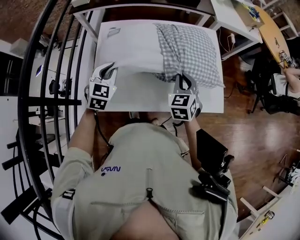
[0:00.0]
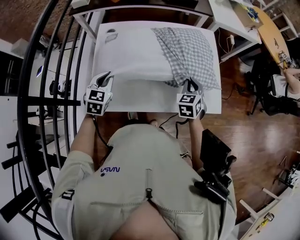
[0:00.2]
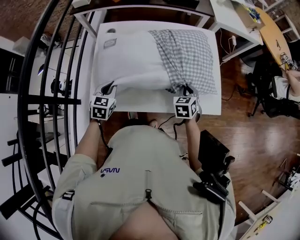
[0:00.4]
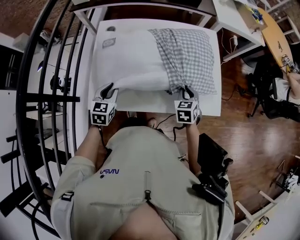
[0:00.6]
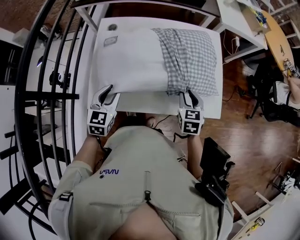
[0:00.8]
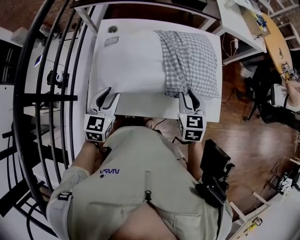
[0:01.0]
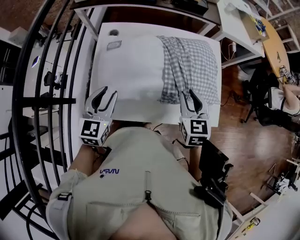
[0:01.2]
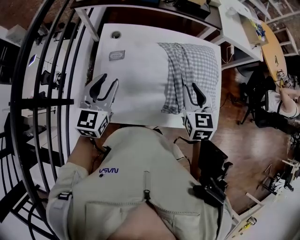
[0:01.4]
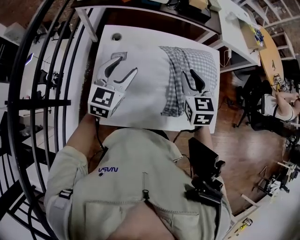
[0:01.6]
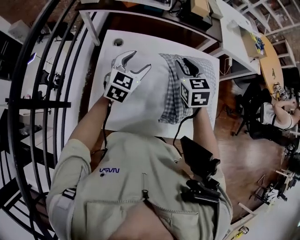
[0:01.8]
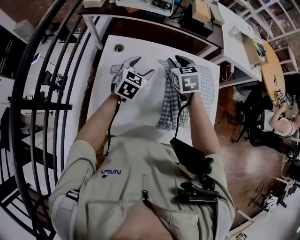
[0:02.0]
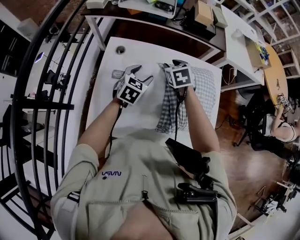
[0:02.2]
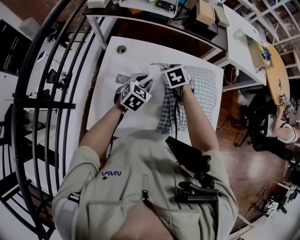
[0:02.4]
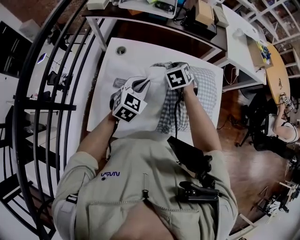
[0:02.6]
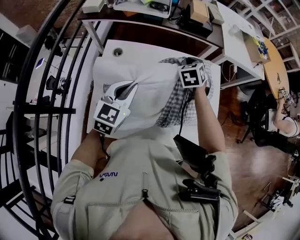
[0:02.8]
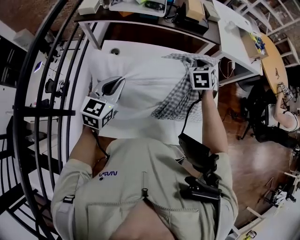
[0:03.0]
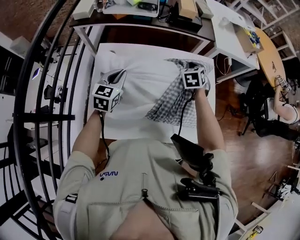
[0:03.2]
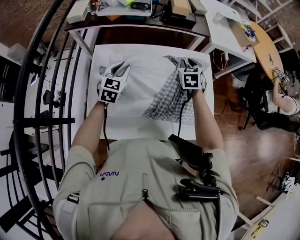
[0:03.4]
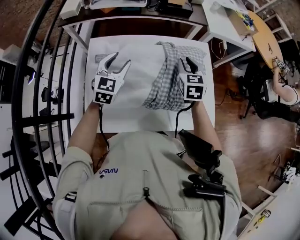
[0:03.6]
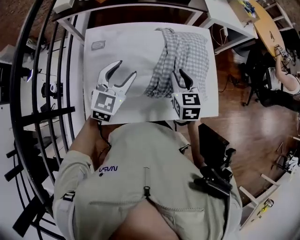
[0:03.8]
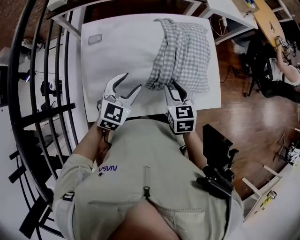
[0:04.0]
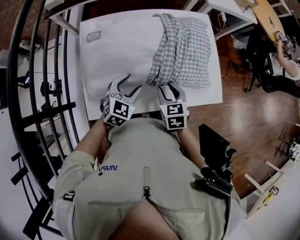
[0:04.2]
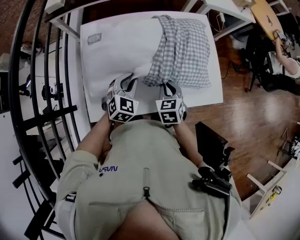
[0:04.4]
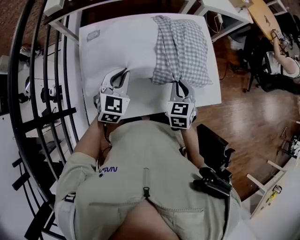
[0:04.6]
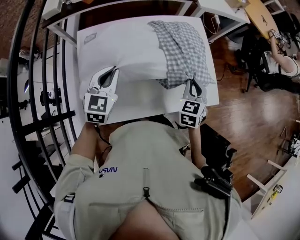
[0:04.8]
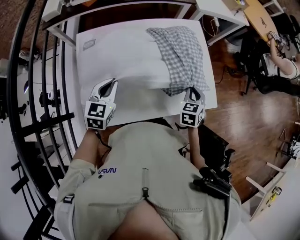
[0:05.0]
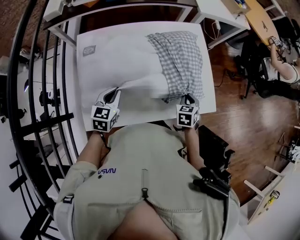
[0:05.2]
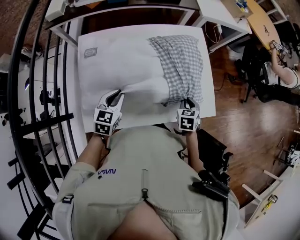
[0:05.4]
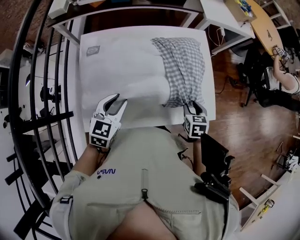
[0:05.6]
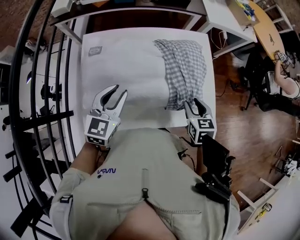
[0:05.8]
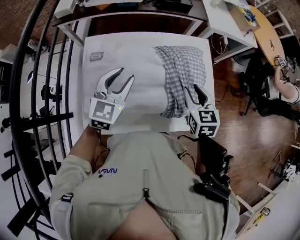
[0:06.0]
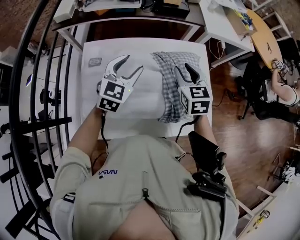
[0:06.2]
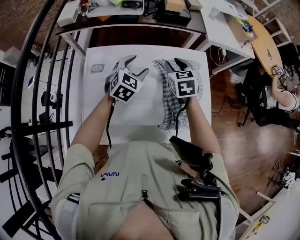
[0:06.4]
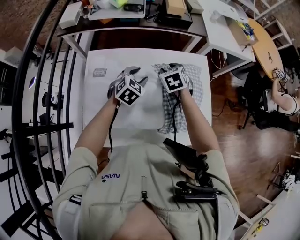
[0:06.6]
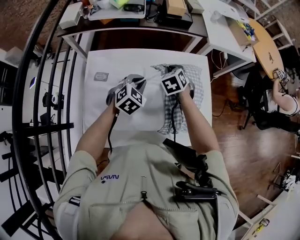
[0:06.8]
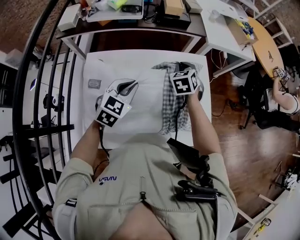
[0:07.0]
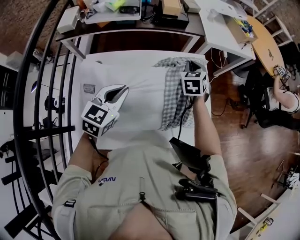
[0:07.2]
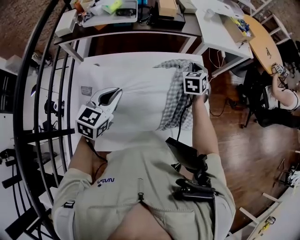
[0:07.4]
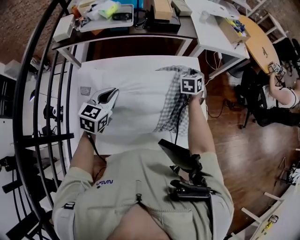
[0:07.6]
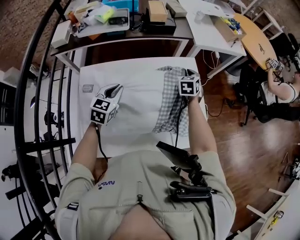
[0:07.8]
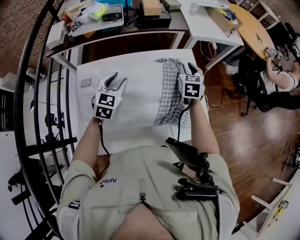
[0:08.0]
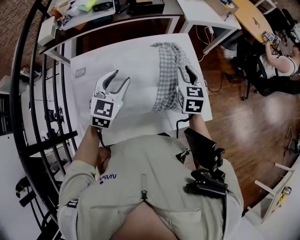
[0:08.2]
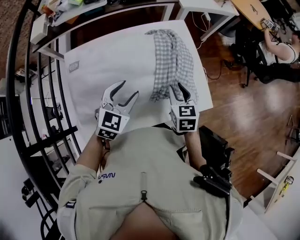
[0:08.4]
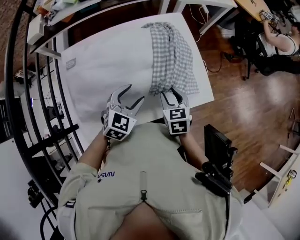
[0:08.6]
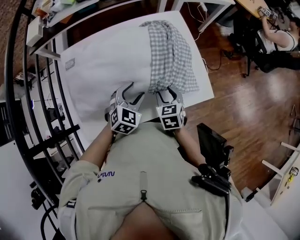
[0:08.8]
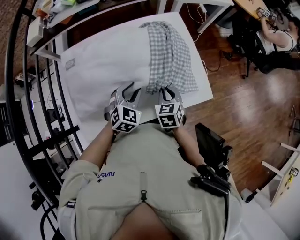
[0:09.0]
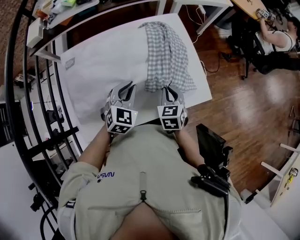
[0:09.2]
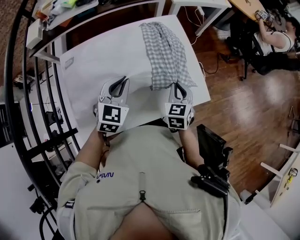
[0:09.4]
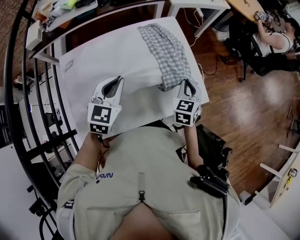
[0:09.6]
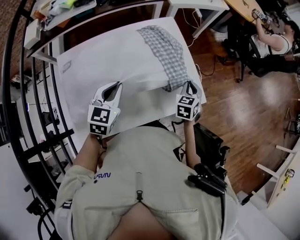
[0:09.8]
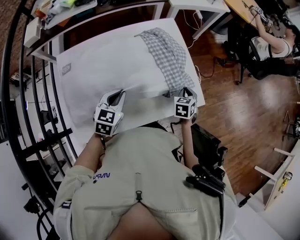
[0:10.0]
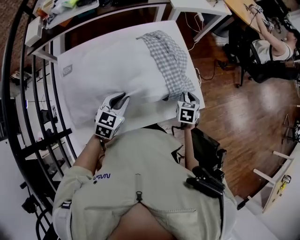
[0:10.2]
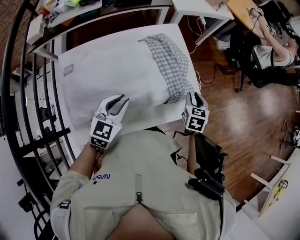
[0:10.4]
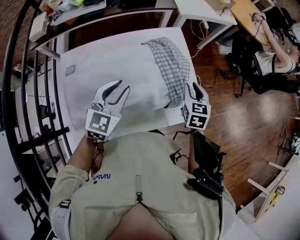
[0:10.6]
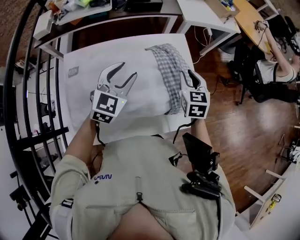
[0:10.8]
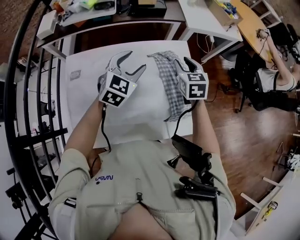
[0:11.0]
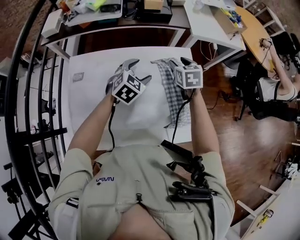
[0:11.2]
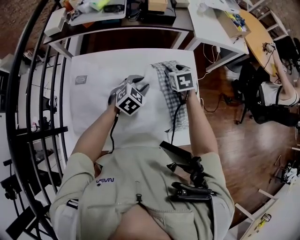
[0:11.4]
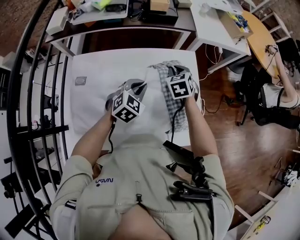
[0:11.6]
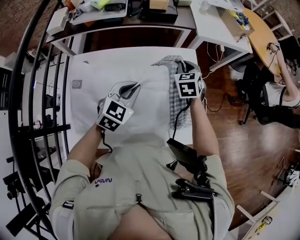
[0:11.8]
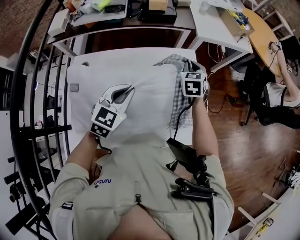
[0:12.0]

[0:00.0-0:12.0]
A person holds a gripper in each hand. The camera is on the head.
0.0 to 1.6 s: The right gripper moves forward and upward, roughly 10 cm, and opens up. Meanwhile the left gripper shifts roughly 10 cm upward and forward, and opens up.
1.6 to 3.0 s: The right gripper shifts about 20 cm forward and to the right, changes its angle by approximately 20 degrees, and closes its fingers. Meanwhile the left gripper moves some 10 cm downward and comes back, and closes up.
3.0 to 4.4 s: The right gripper travels backward and downward by approximately 30 cm, and opens and closes again. The left gripper goes some 15 cm downward and to the right, goes forward and returns, some 10 cm each way, rotates roughly 30 degrees, and opens and closes again.
4.4 to 6.0 s: The left gripper moves up and down over roughly 15 cm, changing direction 2 times, and rotates roughly 20 degrees. The right gripper swings up and down, about 15 cm each way, with 2 reversals, and opens up.
6.0 to 7.6 s: The left gripper travels forward and back again, some 15 cm each way, and closes its fingers, while the right gripper is displaced forward by about 25 cm, turns by approximately 30 degrees, and closes.
7.6 to 9.0 s: The right gripper travels backward by roughly 30 cm, and opens and closes again. The left gripper travels to the right, downward and backward by roughly 20 cm, swivels roughly 30 degrees, and opens.
9.0 to 10.4 s: The right gripper shifts about 20 cm to the right and forward; the left gripper moves up and down over approximately 10 cm, changing direction 2 times.
10.4 to 12.0 s: The right gripper shifts some 30 cm forward and to the left, rotates about 30 degrees, and closes. Meanwhile the left gripper is displaced forward and upward by some 10 cm, and opens and closes again.

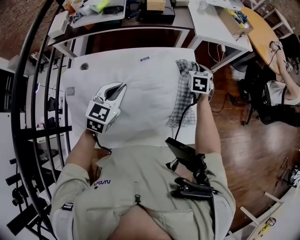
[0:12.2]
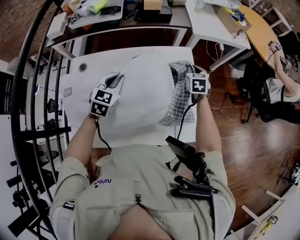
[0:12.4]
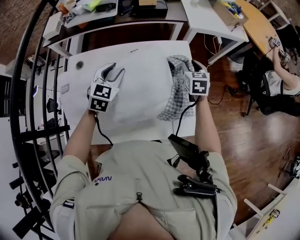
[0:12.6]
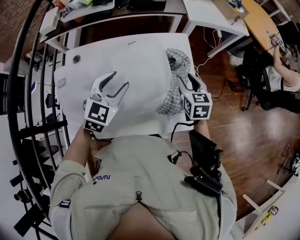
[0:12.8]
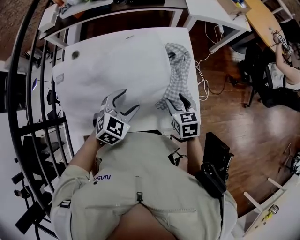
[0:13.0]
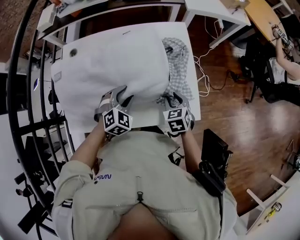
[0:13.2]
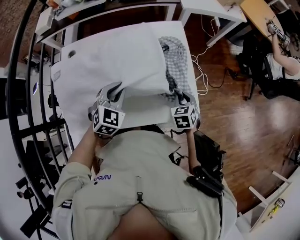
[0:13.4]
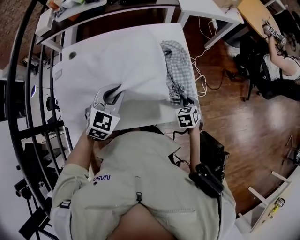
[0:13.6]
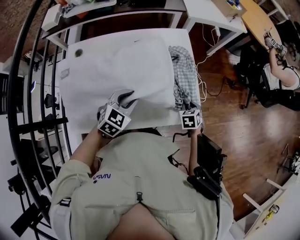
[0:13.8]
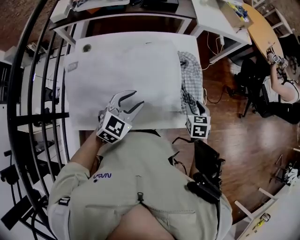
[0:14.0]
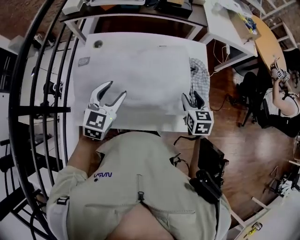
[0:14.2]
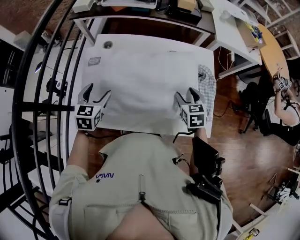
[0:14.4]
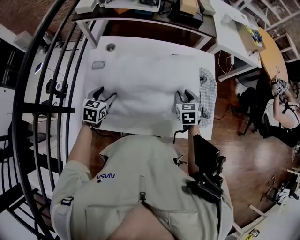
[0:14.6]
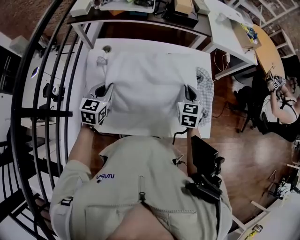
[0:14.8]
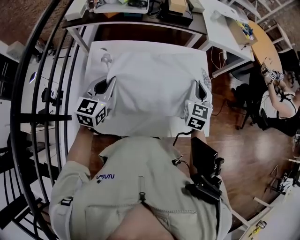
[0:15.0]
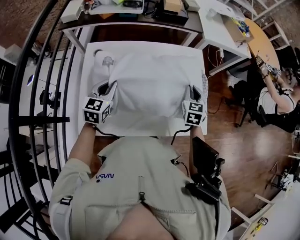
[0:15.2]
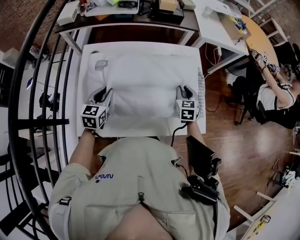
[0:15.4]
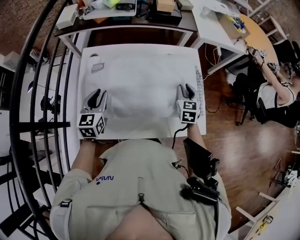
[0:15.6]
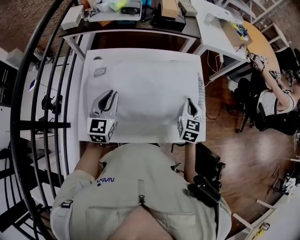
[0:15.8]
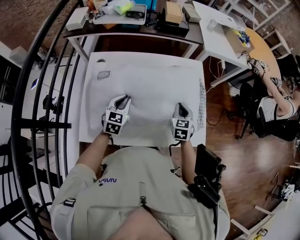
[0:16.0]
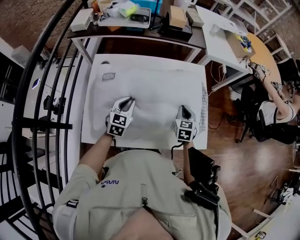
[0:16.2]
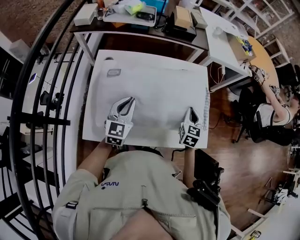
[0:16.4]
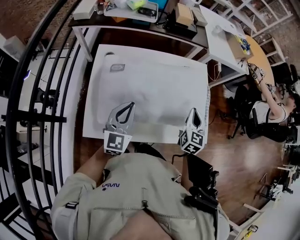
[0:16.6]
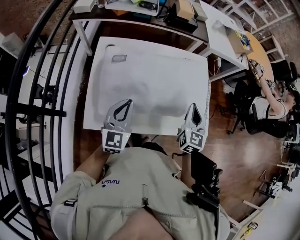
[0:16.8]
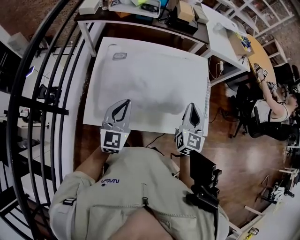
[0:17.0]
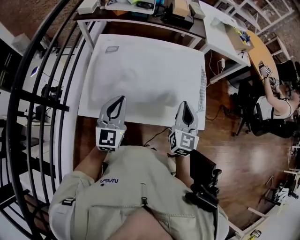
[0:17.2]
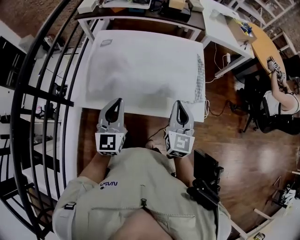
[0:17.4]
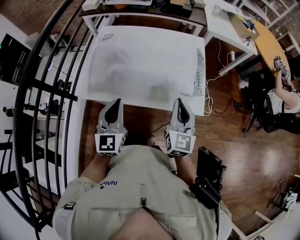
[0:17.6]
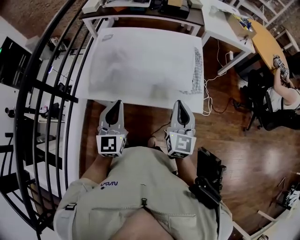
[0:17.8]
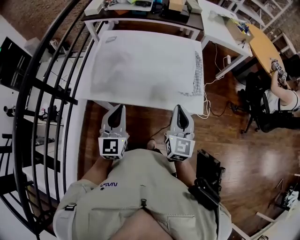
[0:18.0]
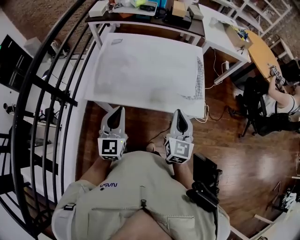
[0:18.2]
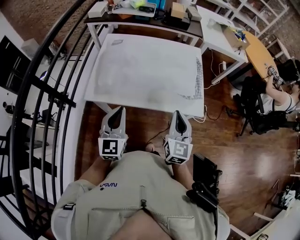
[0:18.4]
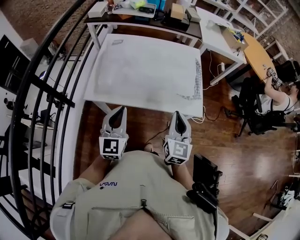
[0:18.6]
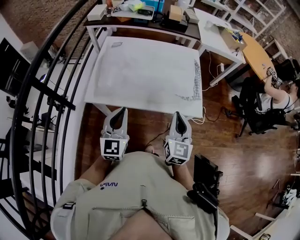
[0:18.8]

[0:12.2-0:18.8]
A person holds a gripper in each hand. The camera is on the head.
12.2 to 13.8 s: The left gripper travels backward, downward and to the right by about 15 cm, and opens, then closes once more. The right gripper is displaced backward and downward by roughly 30 cm, turns by roughly 20 degrees, and opens, then closes again.
13.8 to 15.4 s: The right gripper swings up and down, some 25 cm each way, with 3 reversals, rotates approximately 30 degrees, and opens and closes again, while the left gripper moves up and down over about 15 cm, changing direction 3 times, turns by some 40 degrees, and opens, then closes once more.
15.4 to 17.2 s: The left gripper heads backward, upward and to the right, covering about 20 cm, and rotates roughly 30 degrees, while the right gripper is displaced backward and upward by approximately 25 cm, and swivels some 30 degrees.
17.2 to 18.8 s: Both grippers travel together backward, roughly 15 cm.

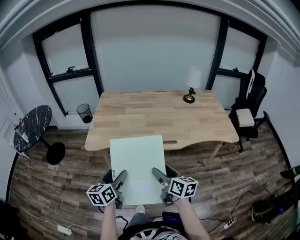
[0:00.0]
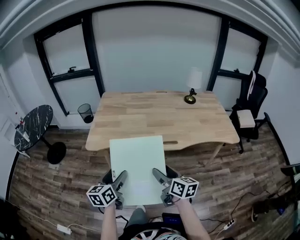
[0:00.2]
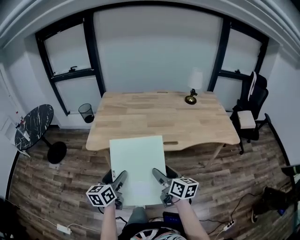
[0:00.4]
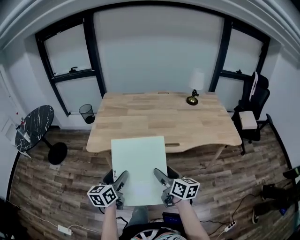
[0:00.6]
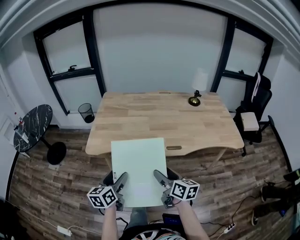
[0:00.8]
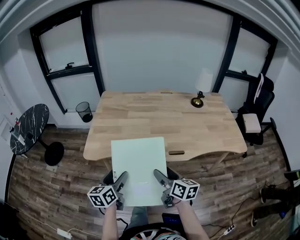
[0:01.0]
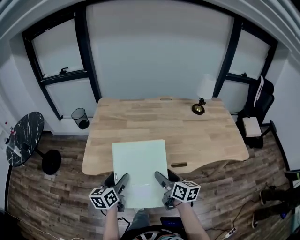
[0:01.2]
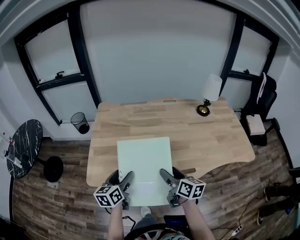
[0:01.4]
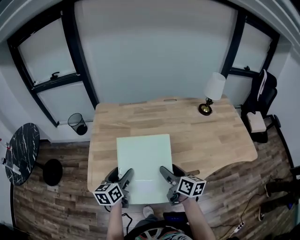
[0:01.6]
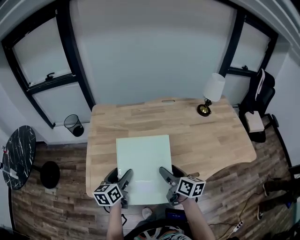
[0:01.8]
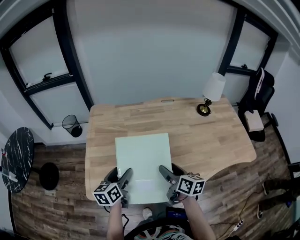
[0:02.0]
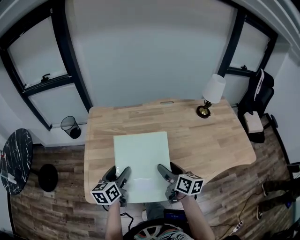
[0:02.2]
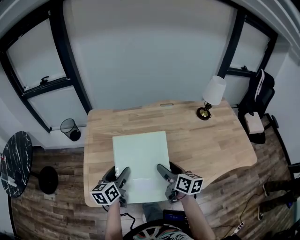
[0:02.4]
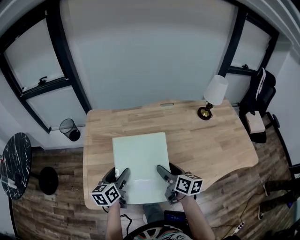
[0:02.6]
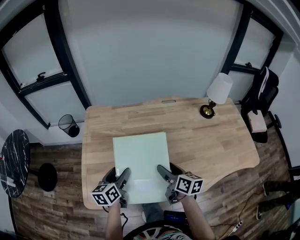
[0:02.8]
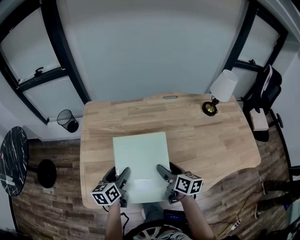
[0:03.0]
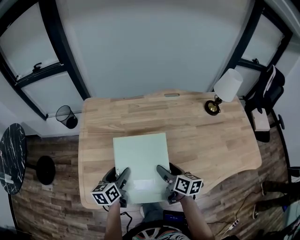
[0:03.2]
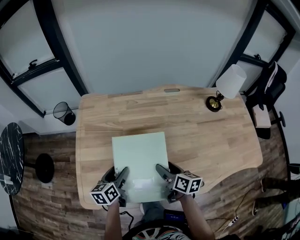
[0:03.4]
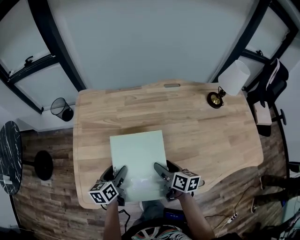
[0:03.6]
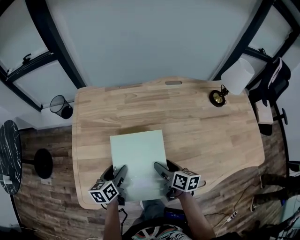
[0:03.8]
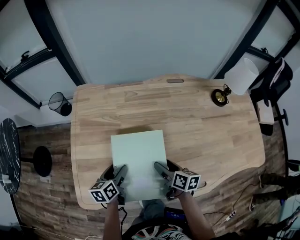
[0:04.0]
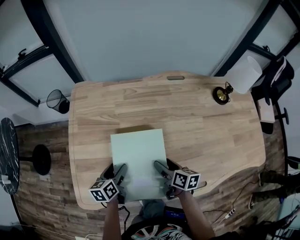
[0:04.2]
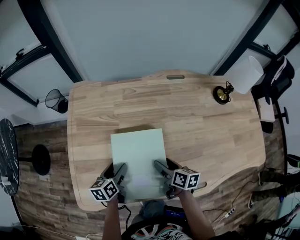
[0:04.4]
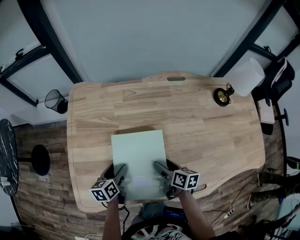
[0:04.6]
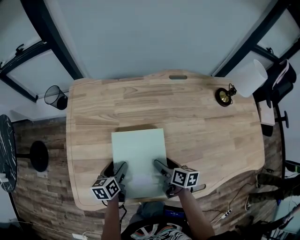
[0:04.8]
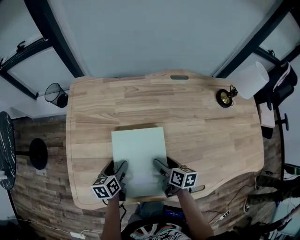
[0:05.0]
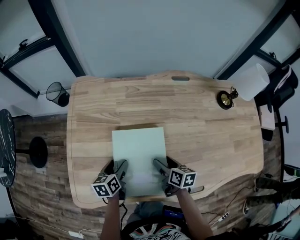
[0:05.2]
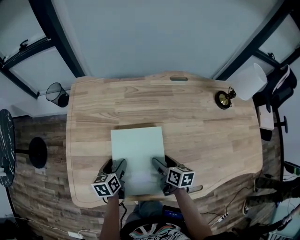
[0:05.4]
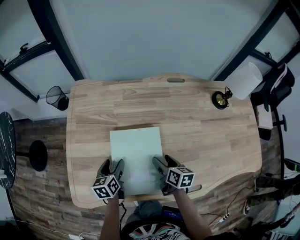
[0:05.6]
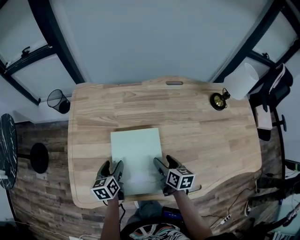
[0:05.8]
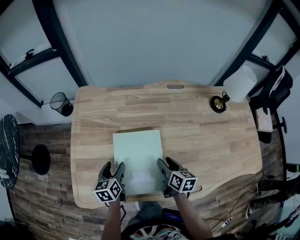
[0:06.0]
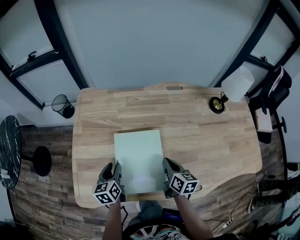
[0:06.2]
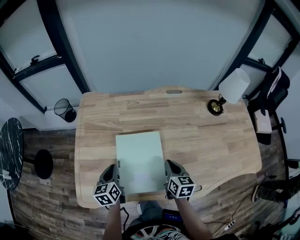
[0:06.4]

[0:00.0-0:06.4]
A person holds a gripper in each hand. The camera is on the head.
0.0 to 1.6 s: Both grippers move forward, roughly 30 cm.
1.6 to 3.2 s: The two grippers go about 15 cm forward and downward.
3.2 to 4.8 s: Both grippers travel together downward, approximately 10 cm.
4.8 to 6.4 s: Both grippers move upward, approximately 5 cm. The right gripper turns by roughly 30 degrees, and closes its fingers, while the left gripper closes its fingers.
